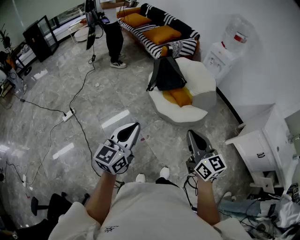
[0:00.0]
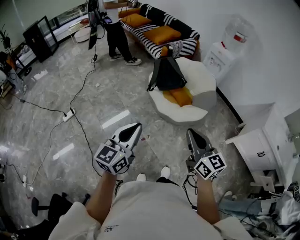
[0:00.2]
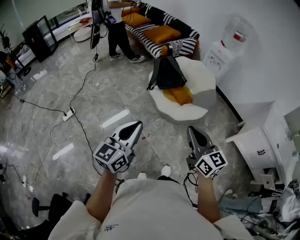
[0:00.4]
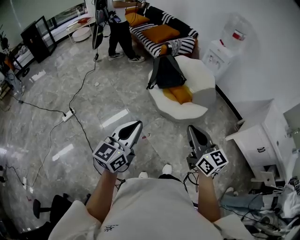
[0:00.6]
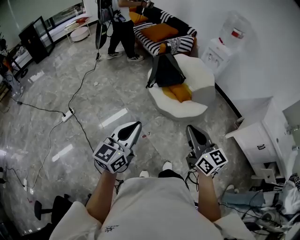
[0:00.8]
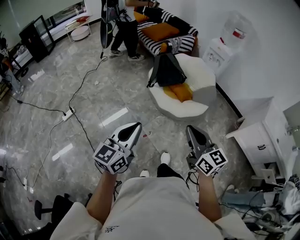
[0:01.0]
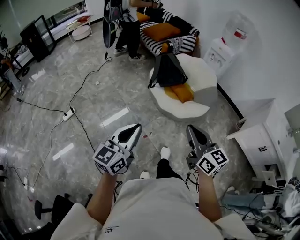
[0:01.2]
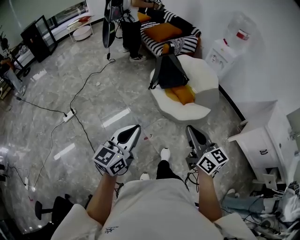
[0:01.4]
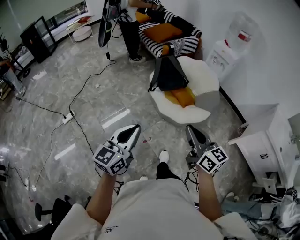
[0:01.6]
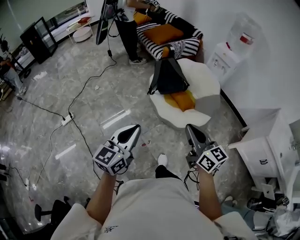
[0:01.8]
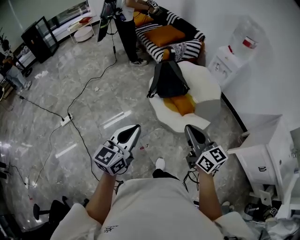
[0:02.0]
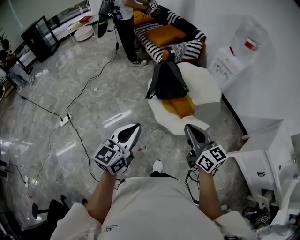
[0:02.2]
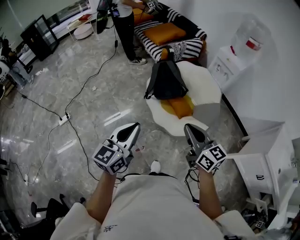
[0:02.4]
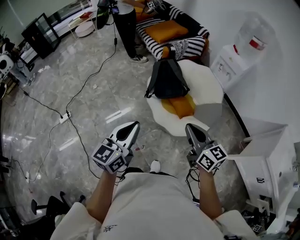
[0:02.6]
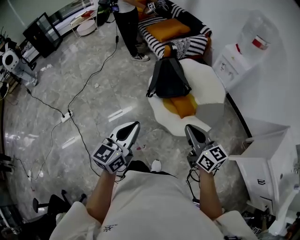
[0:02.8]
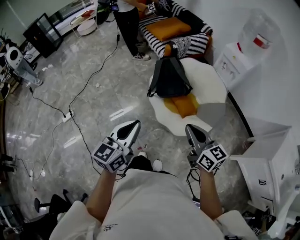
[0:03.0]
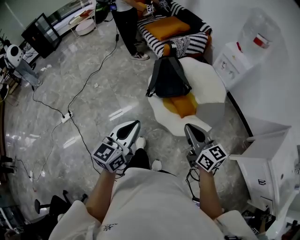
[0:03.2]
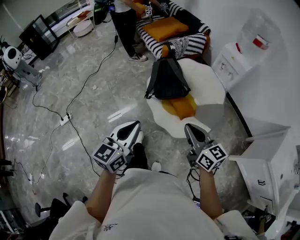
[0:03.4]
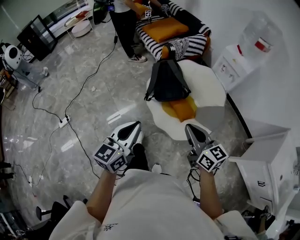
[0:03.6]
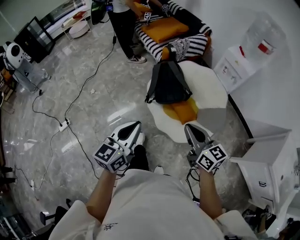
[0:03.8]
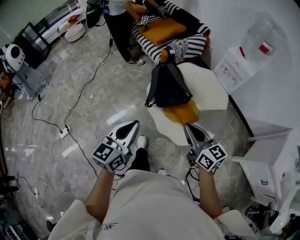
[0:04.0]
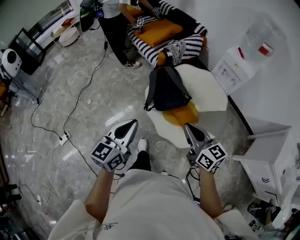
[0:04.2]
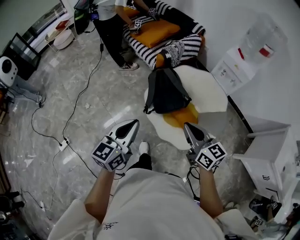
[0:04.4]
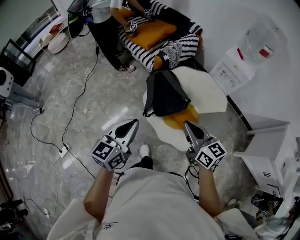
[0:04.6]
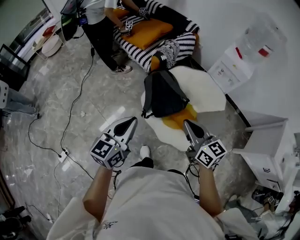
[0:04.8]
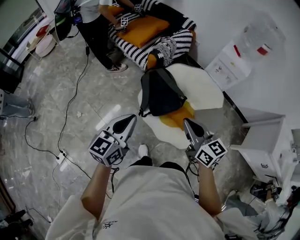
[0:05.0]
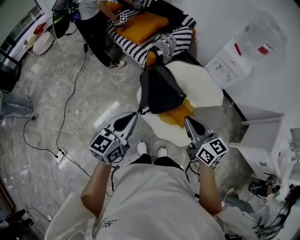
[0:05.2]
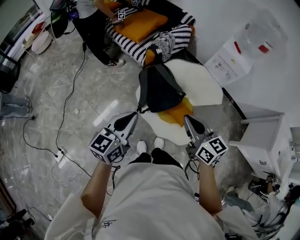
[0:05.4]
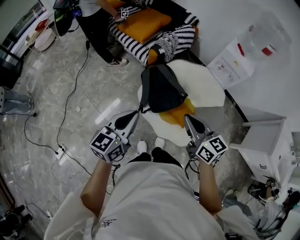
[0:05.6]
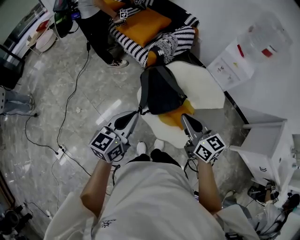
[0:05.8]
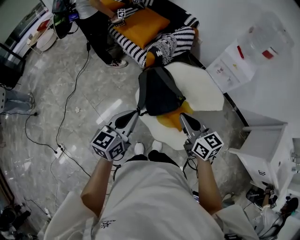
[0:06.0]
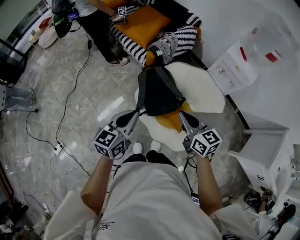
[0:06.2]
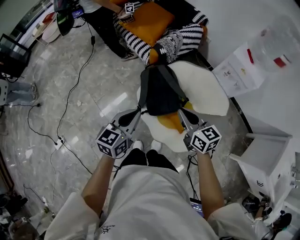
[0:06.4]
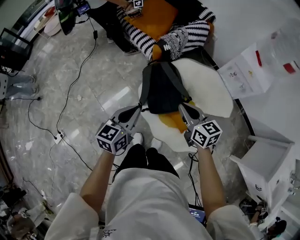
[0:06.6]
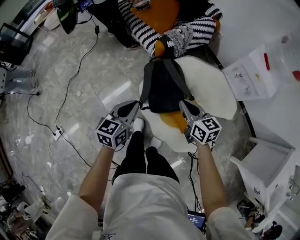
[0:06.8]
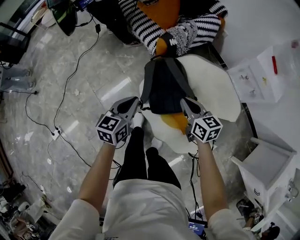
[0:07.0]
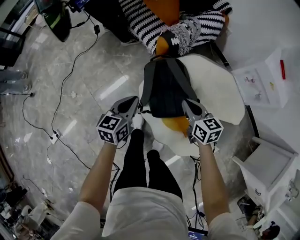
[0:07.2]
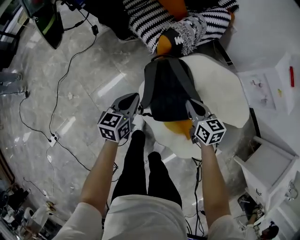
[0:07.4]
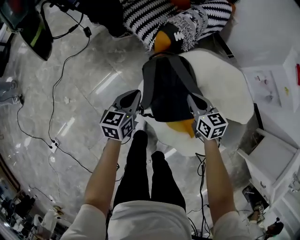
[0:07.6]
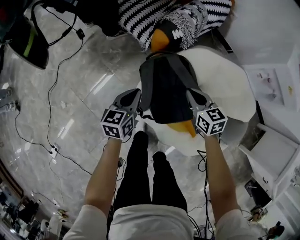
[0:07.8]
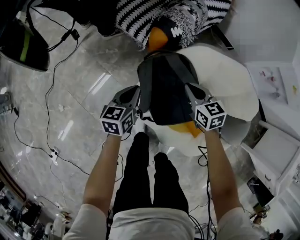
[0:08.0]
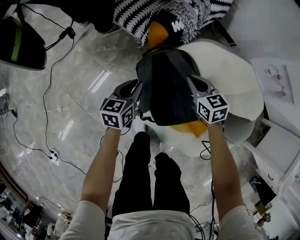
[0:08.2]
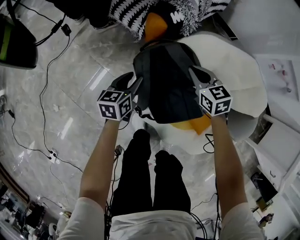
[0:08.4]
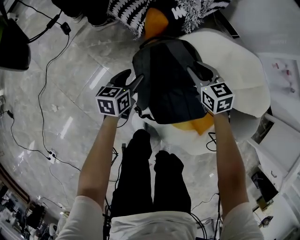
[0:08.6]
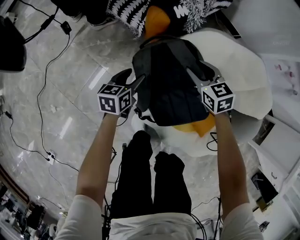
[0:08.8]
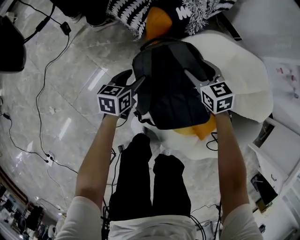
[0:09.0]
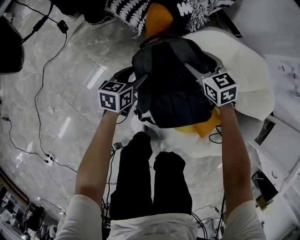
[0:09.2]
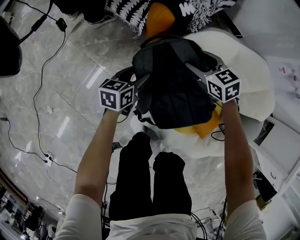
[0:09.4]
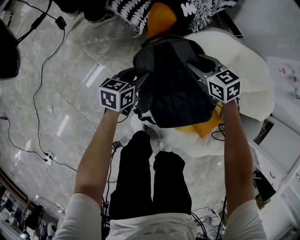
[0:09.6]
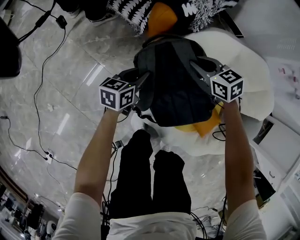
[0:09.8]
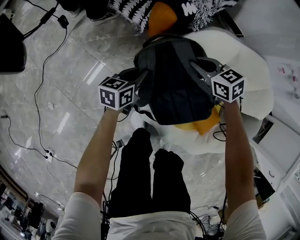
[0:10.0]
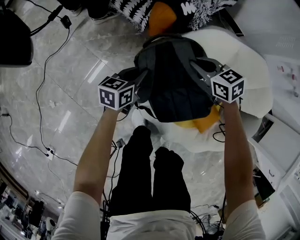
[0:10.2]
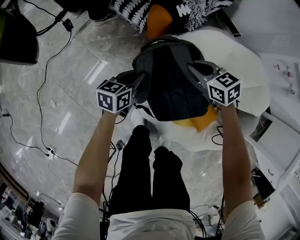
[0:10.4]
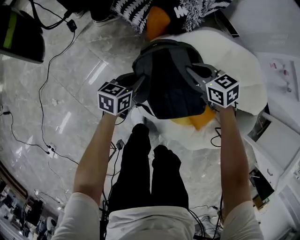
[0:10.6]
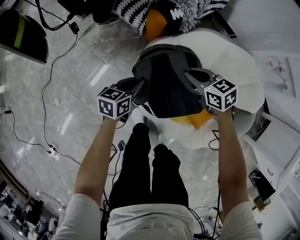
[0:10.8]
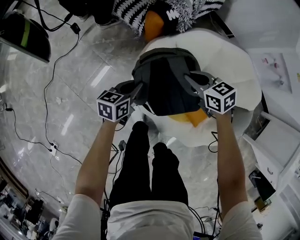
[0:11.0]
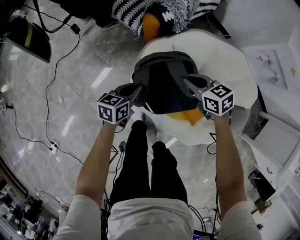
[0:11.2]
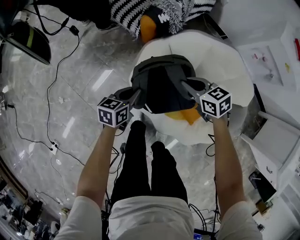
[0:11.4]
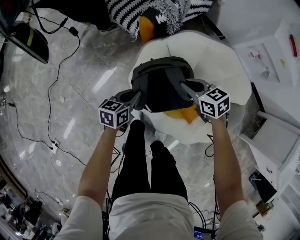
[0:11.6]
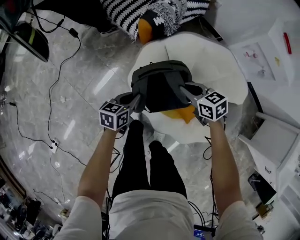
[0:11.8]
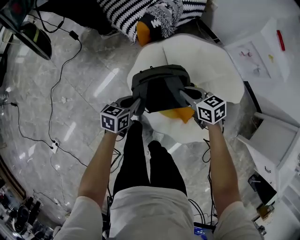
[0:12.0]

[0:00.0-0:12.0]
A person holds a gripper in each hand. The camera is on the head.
0:00.0 to 0:01.6: The right gripper shifts some 5 cm forward.
0:01.6 to 0:03.0: The grippers both shift forward and to the right by roughly 25 cm.
0:03.0 to 0:04.4: Both grippers travel together forward, some 20 cm.
0:04.4 to 0:06.0: Both grippers move forward, roughly 15 cm.
0:06.0 to 0:07.6: The grippers both shift downward and forward by about 40 cm. The left gripper rotates roughly 20 degrees; the right gripper rotates some 20 degrees.
0:07.6 to 0:09.0: The left gripper shifts roughly 20 cm downward, and opens up. Meanwhile the right gripper goes about 20 cm downward and forward, and opens.
0:09.0 to 0:10.4: The right gripper closes up. Meanwhile the left gripper closes its fingers.
0:10.4 to 0:12.0: The grippers both shift backward and upward by about 20 cm.

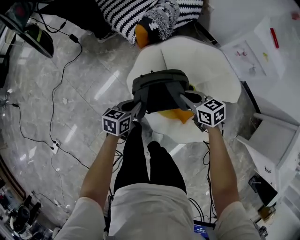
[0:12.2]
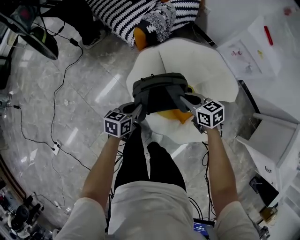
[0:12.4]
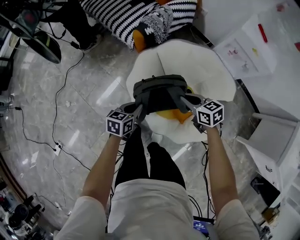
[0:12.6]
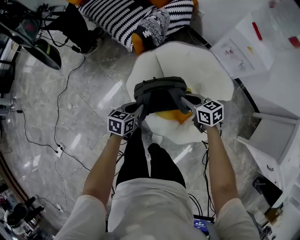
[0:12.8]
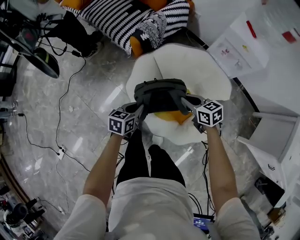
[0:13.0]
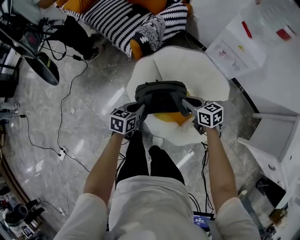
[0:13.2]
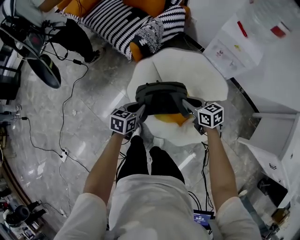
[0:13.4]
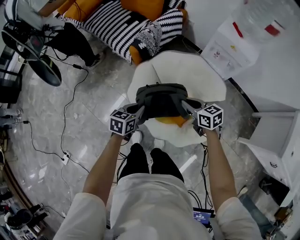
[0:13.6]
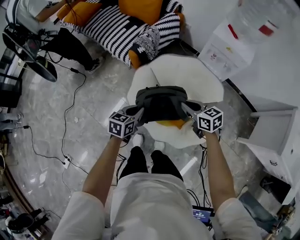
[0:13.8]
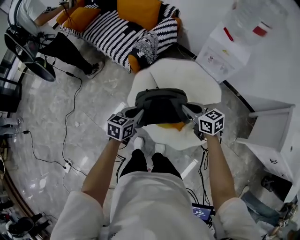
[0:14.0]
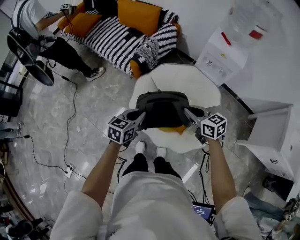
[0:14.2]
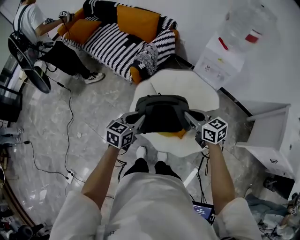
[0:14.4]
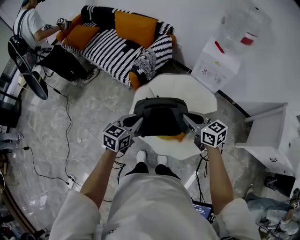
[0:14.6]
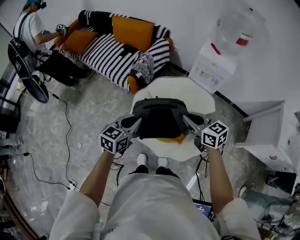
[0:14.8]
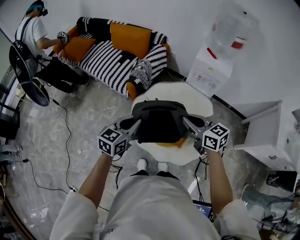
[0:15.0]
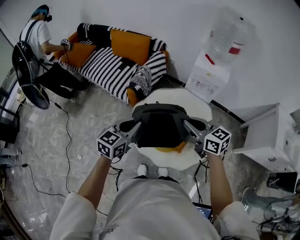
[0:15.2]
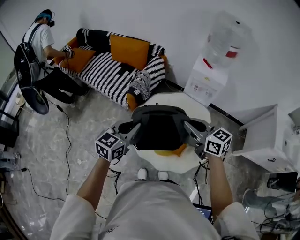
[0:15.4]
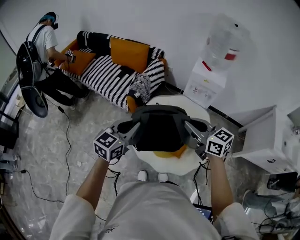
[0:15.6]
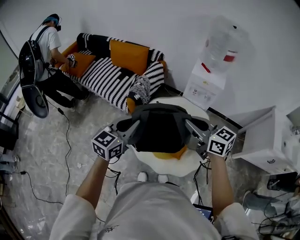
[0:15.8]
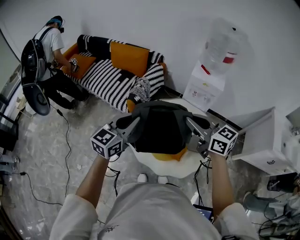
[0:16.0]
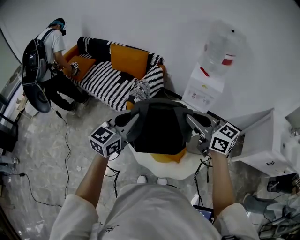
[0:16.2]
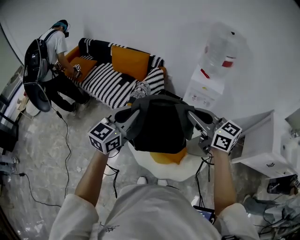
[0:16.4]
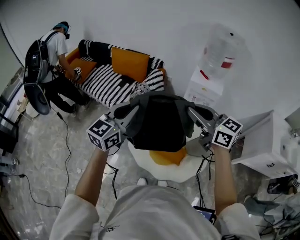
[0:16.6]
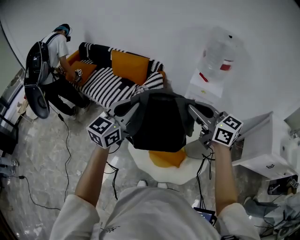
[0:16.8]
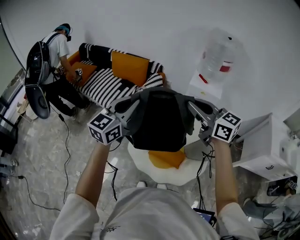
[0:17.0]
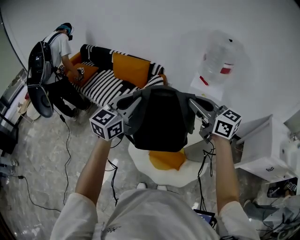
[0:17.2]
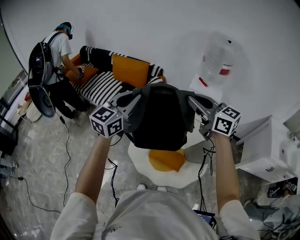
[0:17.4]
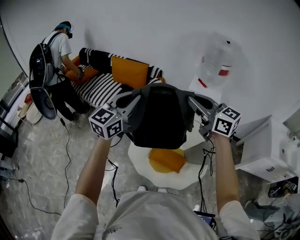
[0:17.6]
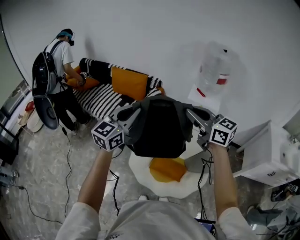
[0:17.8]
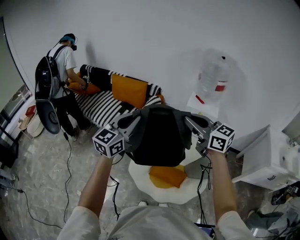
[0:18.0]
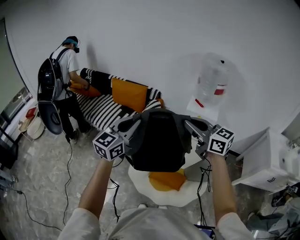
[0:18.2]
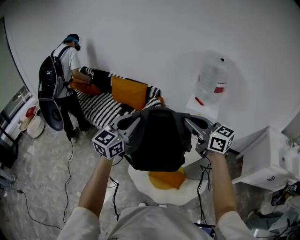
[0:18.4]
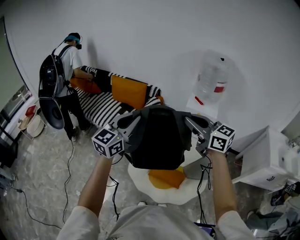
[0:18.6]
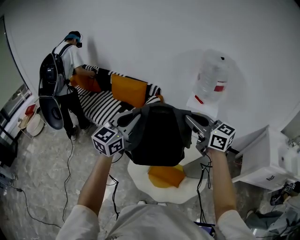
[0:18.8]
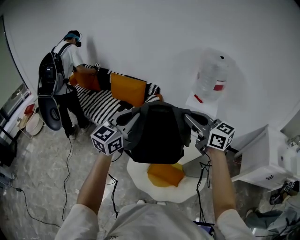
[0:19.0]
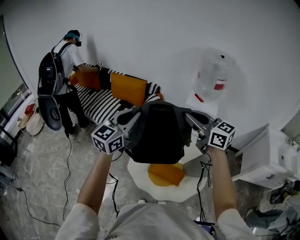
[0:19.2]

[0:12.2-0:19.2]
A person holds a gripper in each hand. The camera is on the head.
0:12.2 to 0:13.6: The right gripper shifts approximately 15 cm upward, to the right and backward. Meanwhile the left gripper travels upward and to the right by some 15 cm.
0:13.6 to 0:15.0: The grippers both shift upward by roughly 20 cm. The left gripper changes its angle by roughly 30 degrees.
0:15.0 to 0:16.4: The grippers both shift upward by some 15 cm. The left gripper changes its angle by about 20 degrees.
0:16.4 to 0:17.8: Both grippers move forward and upward, roughly 10 cm.
0:17.8 to 0:19.2: The grippers stay close to where they were, moving slightly.

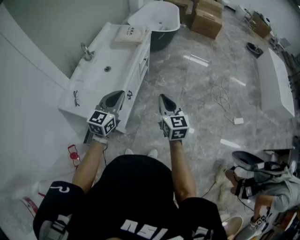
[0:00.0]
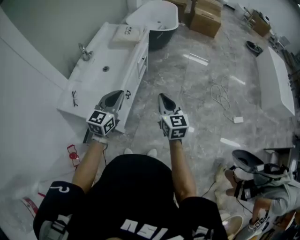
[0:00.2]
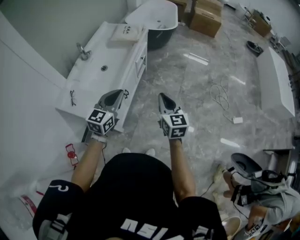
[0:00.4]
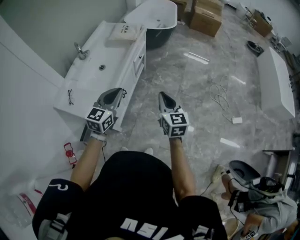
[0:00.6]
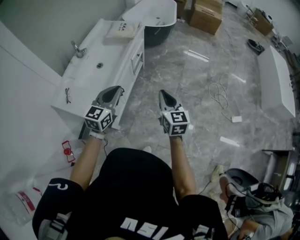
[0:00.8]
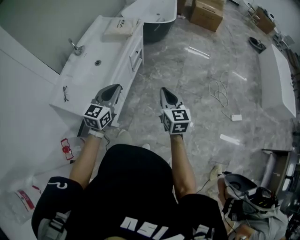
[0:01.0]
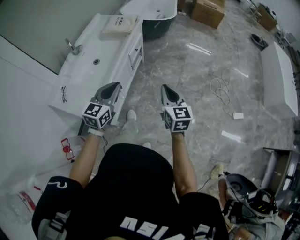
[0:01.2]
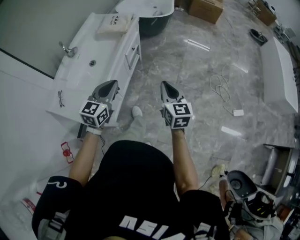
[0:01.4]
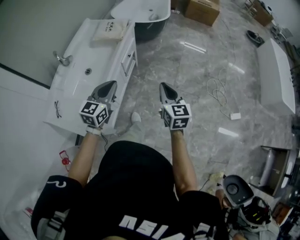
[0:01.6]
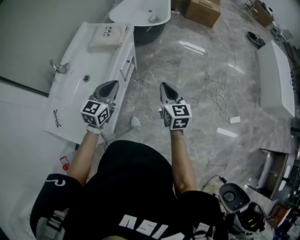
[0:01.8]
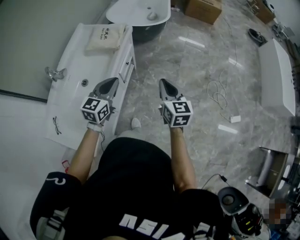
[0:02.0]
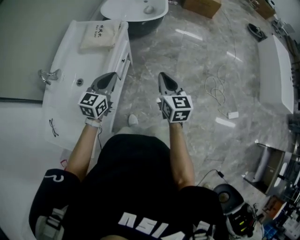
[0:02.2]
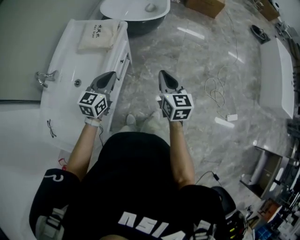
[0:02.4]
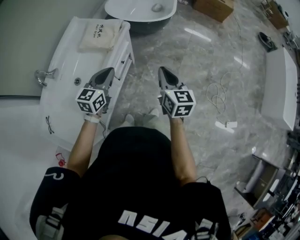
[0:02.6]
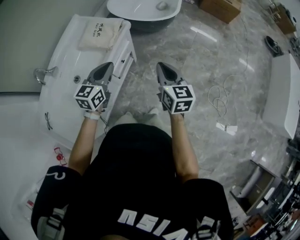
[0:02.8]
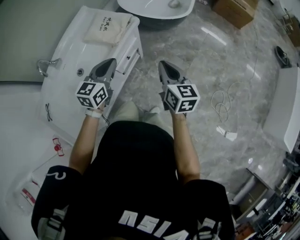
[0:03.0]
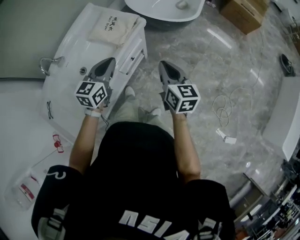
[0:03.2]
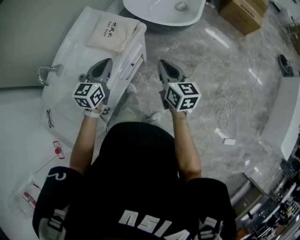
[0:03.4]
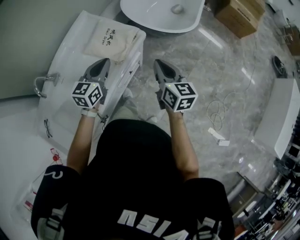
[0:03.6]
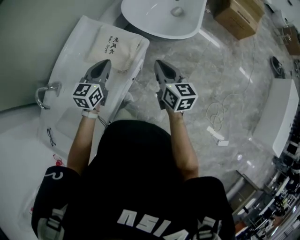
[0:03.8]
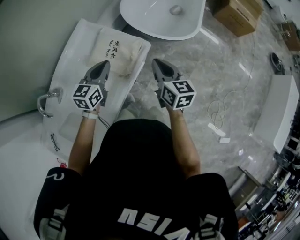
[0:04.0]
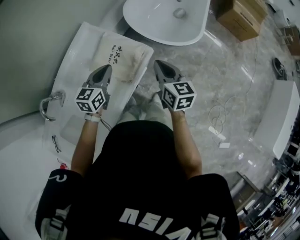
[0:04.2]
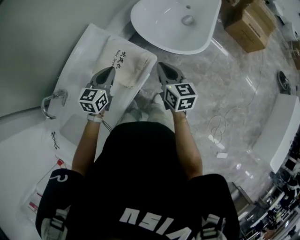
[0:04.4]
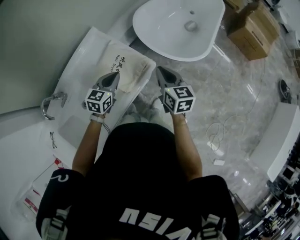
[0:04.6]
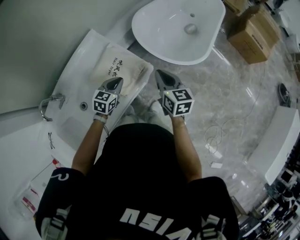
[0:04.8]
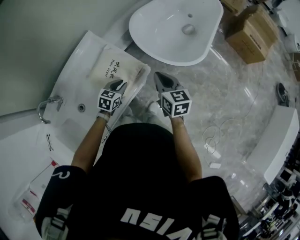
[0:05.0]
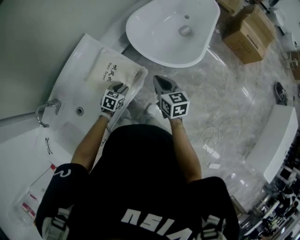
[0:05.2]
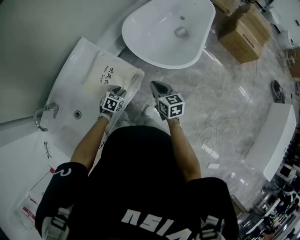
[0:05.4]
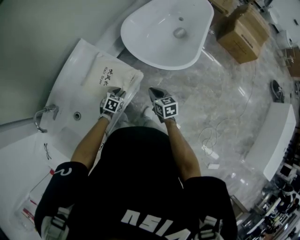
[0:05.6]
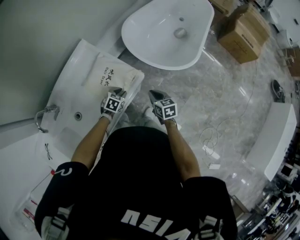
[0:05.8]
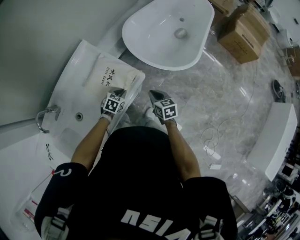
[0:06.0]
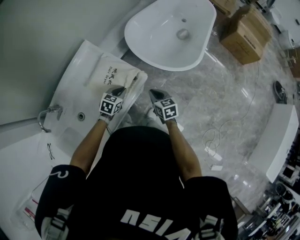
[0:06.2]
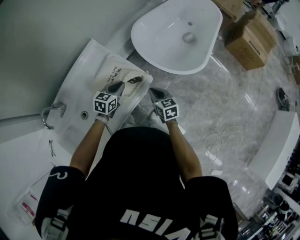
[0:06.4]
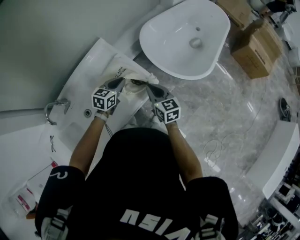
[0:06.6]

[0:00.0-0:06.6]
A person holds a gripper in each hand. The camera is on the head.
0:00.0 to 0:01.6: The two grippers go some 20 cm forward and to the right.
0:01.6 to 0:03.2: The two grippers go roughly 40 cm forward. The right gripper changes its angle by approximately 20 degrees.
0:03.2 to 0:05.0: The left gripper is displaced forward and downward by roughly 30 cm, and turns by roughly 20 degrees, while the right gripper is displaced forward by about 30 cm.
0:05.0 to 0:06.6: The left gripper shifts roughly 10 cm upward and forward; the right gripper moves to the left, roughly 10 cm, and travels downward and back again, about 15 cm each way.
